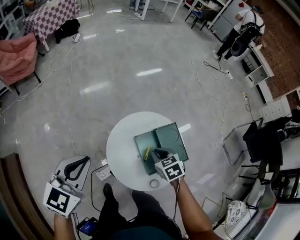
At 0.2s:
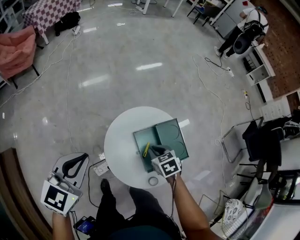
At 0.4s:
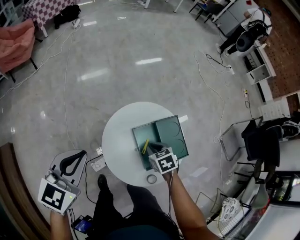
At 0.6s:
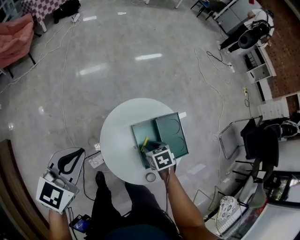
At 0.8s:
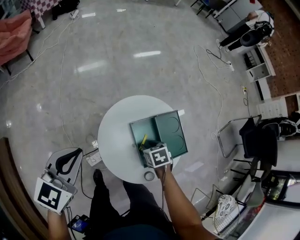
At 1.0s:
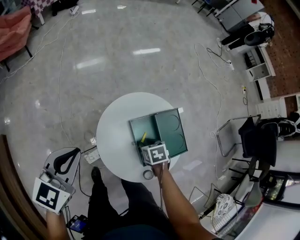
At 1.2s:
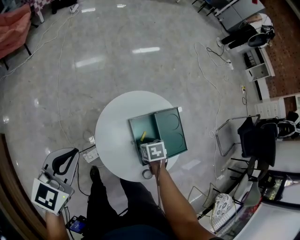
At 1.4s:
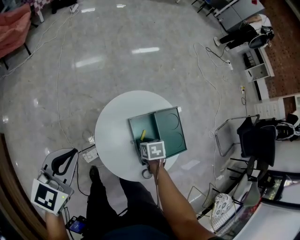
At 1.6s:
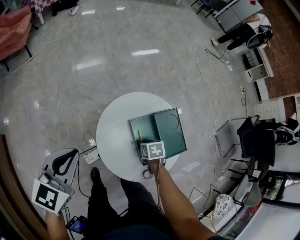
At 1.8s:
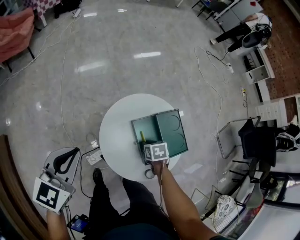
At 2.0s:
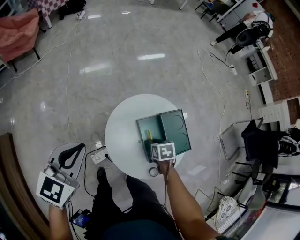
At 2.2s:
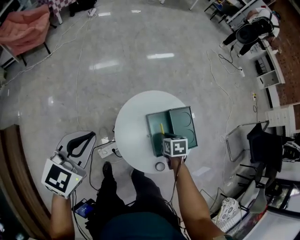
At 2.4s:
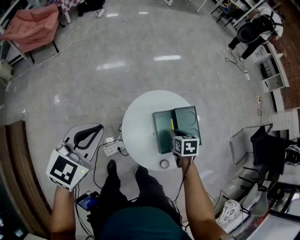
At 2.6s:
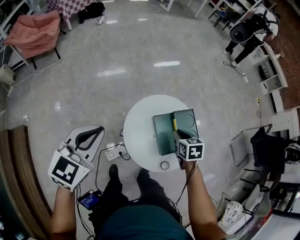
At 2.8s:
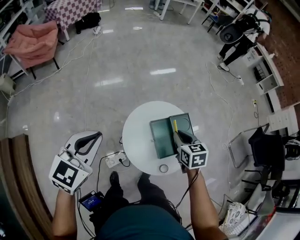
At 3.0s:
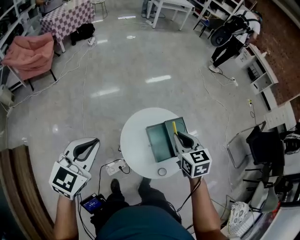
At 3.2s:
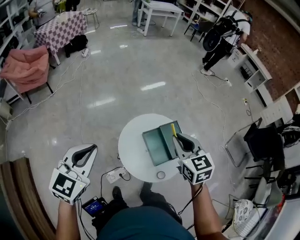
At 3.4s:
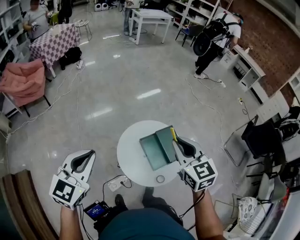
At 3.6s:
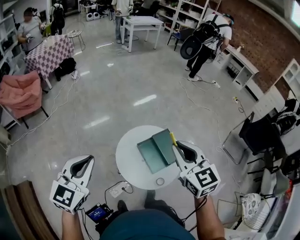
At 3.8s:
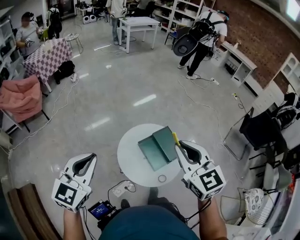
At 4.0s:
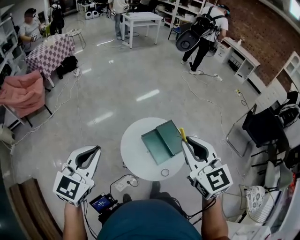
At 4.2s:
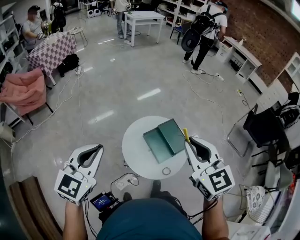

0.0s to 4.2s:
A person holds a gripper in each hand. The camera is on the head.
0.0s to 1.4s: The right gripper moves downward, some 20 cm, turns by some 30 degrees, and opens its fingers; the left gripper goes approximately 15 cm downward.
1.4s to 2.8s: The left gripper travels upward and backward by some 20 cm. The right gripper moves upward, approximately 30 cm, and changes its angle by some 30 degrees.
2.8s to 4.2s: The left gripper is displaced upward and backward by about 15 cm. Meanwhile the right gripper is displaced upward and backward by some 35 cm, and angles its fingers upward, by roughly 30 degrees.

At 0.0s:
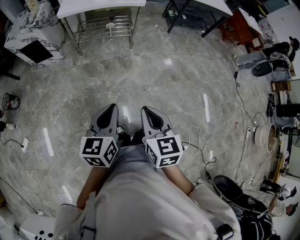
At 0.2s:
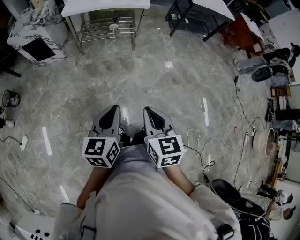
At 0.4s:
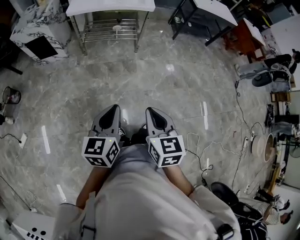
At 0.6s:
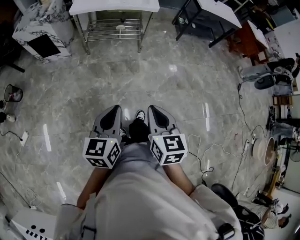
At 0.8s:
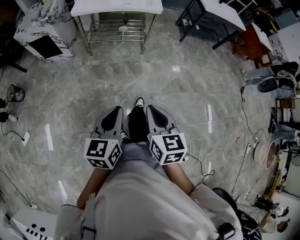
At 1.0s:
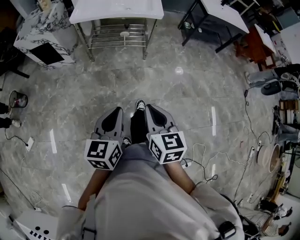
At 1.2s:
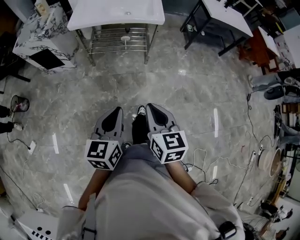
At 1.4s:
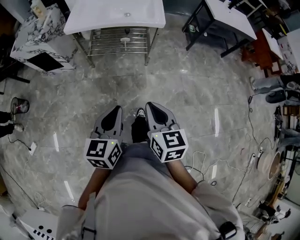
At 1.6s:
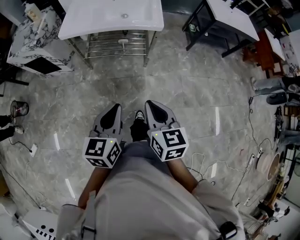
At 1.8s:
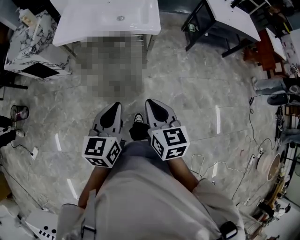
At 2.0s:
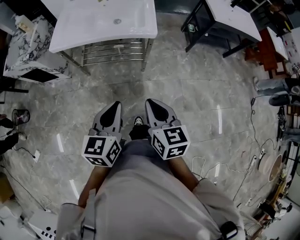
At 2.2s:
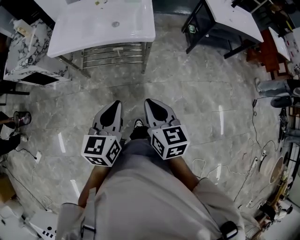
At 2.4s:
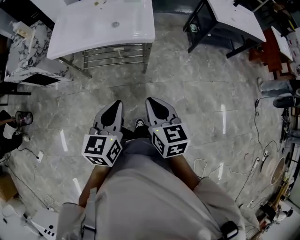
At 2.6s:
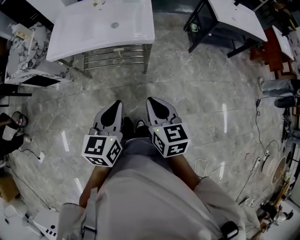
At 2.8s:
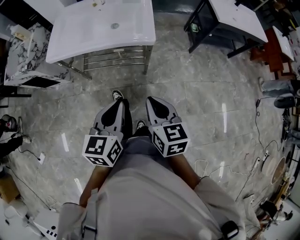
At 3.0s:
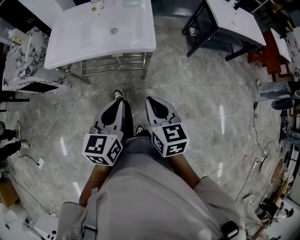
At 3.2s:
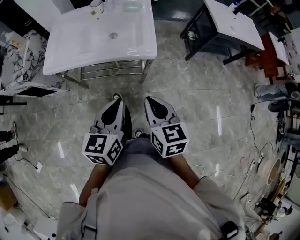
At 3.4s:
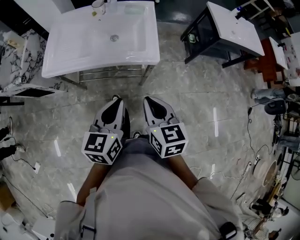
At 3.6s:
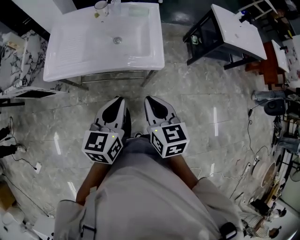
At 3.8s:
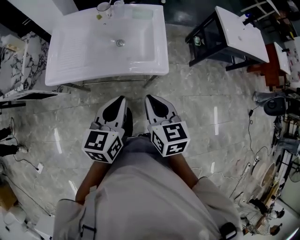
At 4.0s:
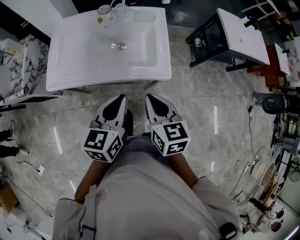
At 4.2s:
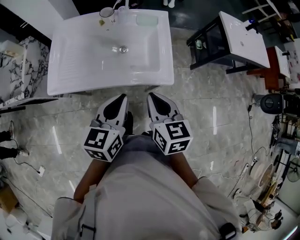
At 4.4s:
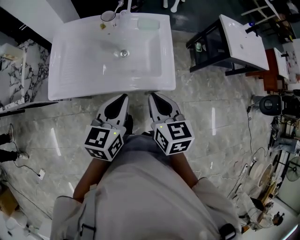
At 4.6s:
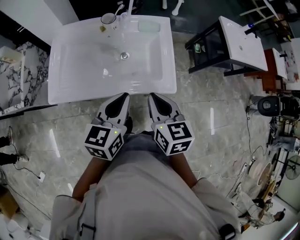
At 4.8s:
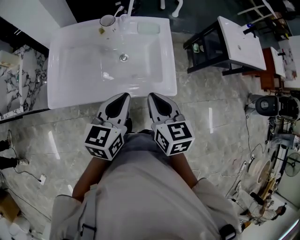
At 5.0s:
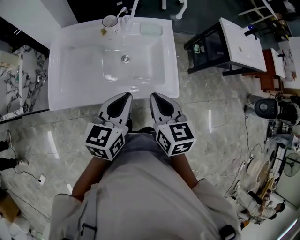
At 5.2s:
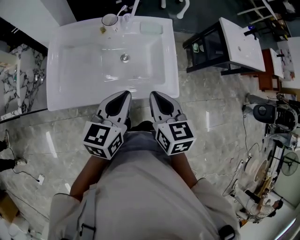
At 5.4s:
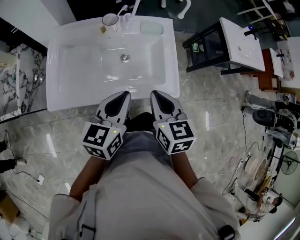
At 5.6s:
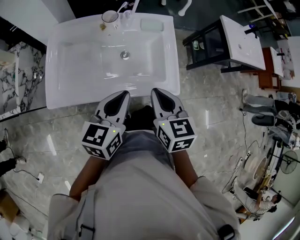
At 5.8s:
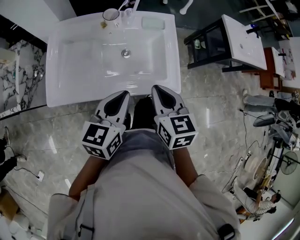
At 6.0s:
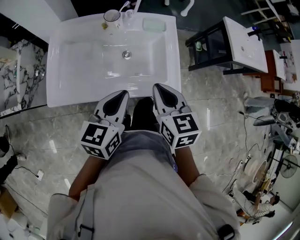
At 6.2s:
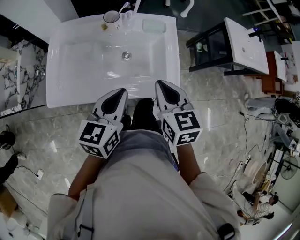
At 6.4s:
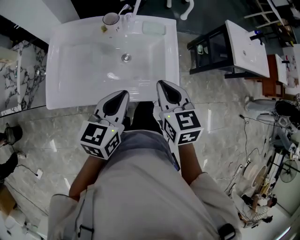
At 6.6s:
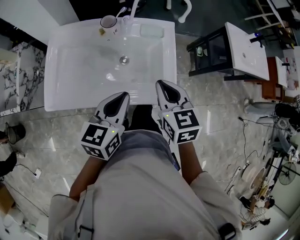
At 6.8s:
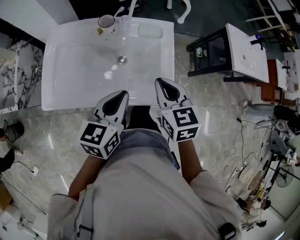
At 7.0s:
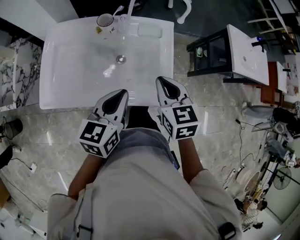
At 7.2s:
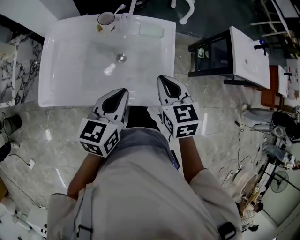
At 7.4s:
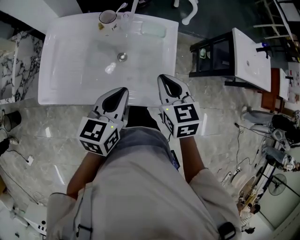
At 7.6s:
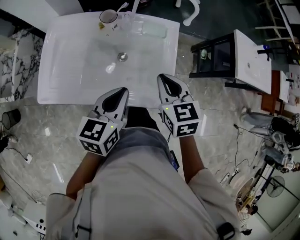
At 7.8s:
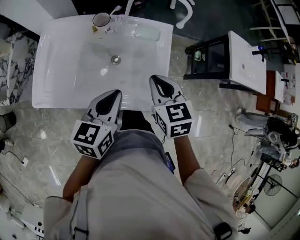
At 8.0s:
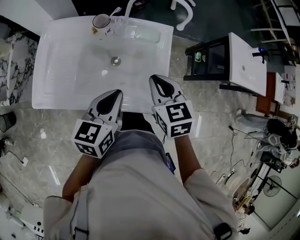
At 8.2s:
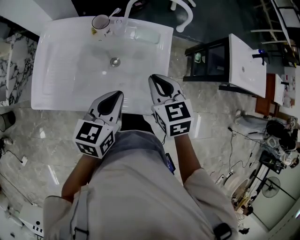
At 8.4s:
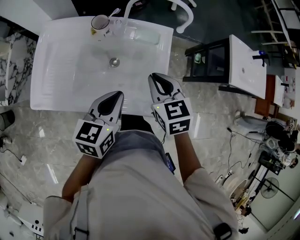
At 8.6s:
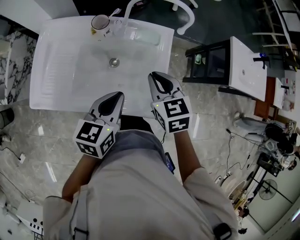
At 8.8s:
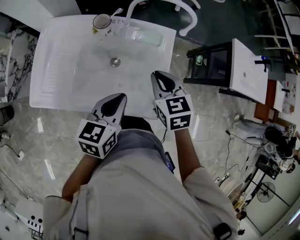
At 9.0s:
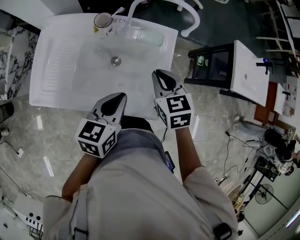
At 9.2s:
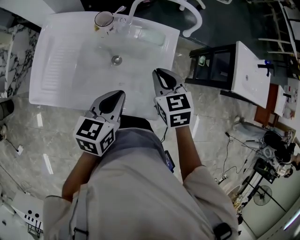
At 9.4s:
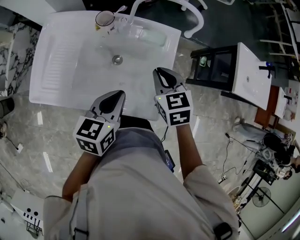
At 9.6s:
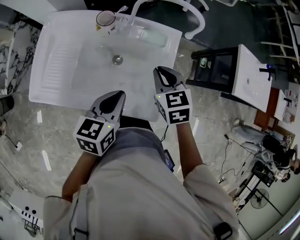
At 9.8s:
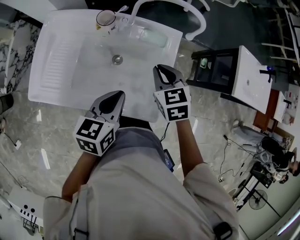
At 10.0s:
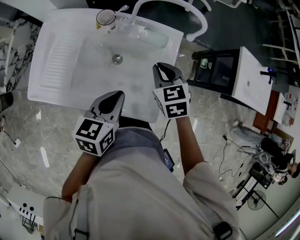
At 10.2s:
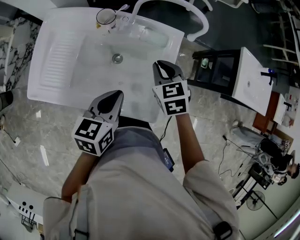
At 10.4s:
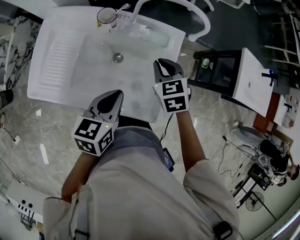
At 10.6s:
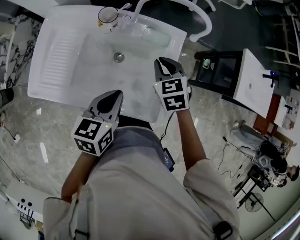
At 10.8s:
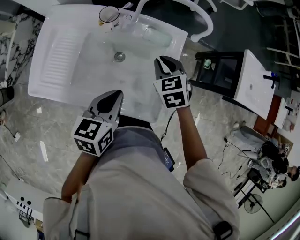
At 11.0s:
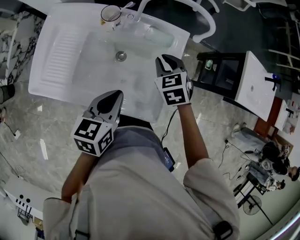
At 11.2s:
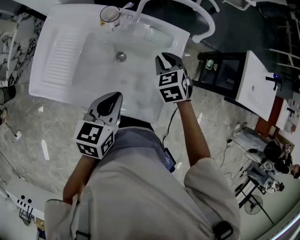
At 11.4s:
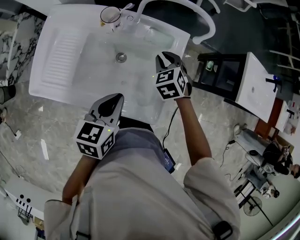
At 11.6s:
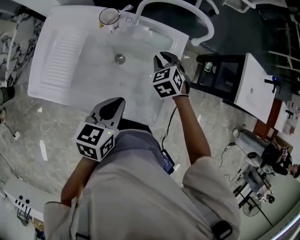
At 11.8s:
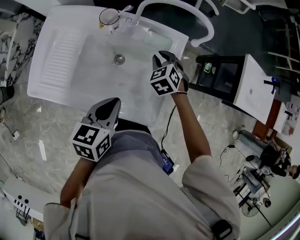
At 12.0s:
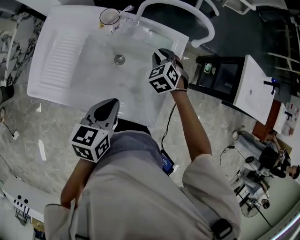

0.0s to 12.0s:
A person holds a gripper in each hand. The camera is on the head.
0.0s to 1.6s: The grippers both shift forward by approximately 30 cm.
1.6s to 3.0s: The grippers both shift forward by roughly 20 cm.
3.0s to 4.4s: The right gripper is displaced forward and to the left by roughly 30 cm; the left gripper shifts some 25 cm forward.
4.4s to 6.0s: Both grippers travel together forward, approximately 5 cm.
6.0s to 7.6s: Both grippers travel together forward and to the right, roughly 10 cm.
7.6s to 9.0s: The right gripper shifts some 5 cm forward.
9.0s to 10.4s: The right gripper goes approximately 10 cm forward and downward.
10.4s to 12.0s: The right gripper shifts about 10 cm downward and forward, and turns by about 20 degrees.

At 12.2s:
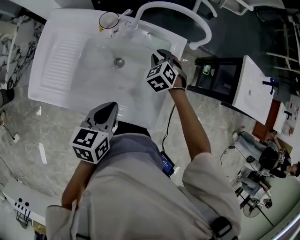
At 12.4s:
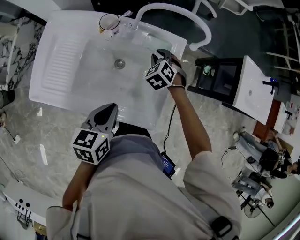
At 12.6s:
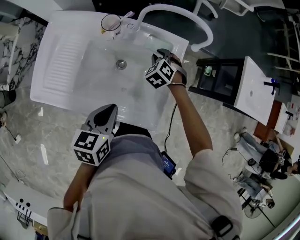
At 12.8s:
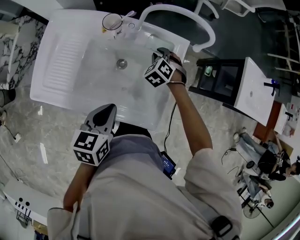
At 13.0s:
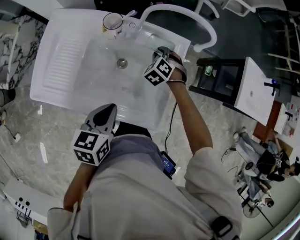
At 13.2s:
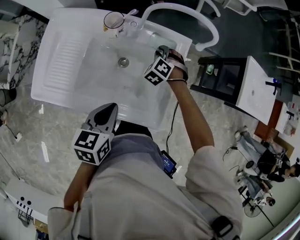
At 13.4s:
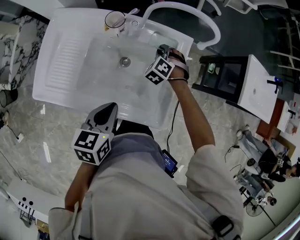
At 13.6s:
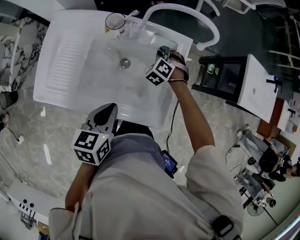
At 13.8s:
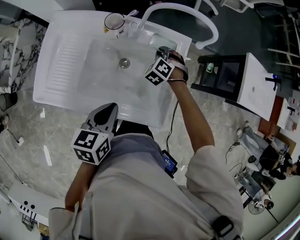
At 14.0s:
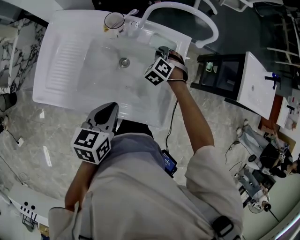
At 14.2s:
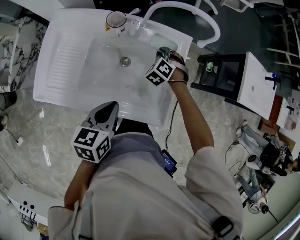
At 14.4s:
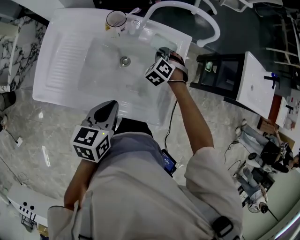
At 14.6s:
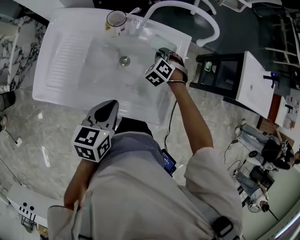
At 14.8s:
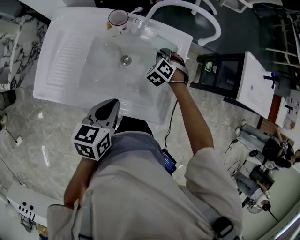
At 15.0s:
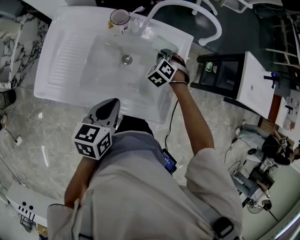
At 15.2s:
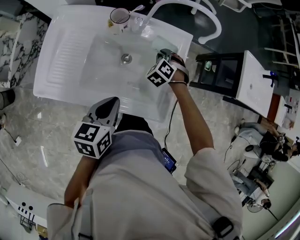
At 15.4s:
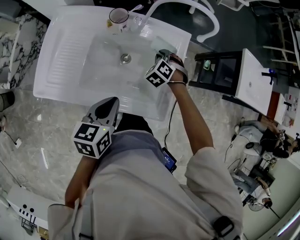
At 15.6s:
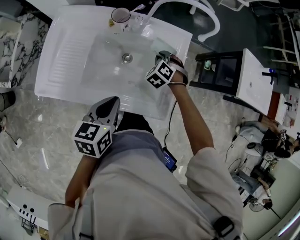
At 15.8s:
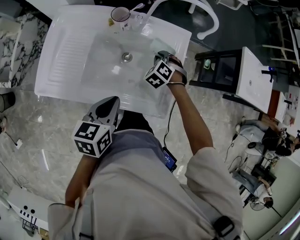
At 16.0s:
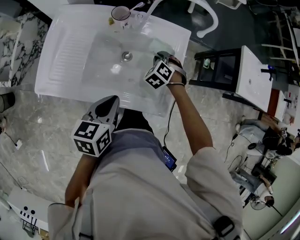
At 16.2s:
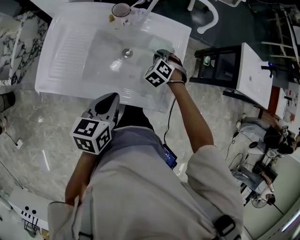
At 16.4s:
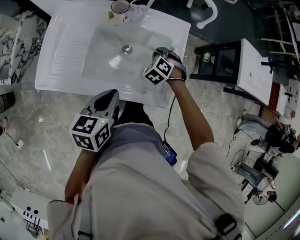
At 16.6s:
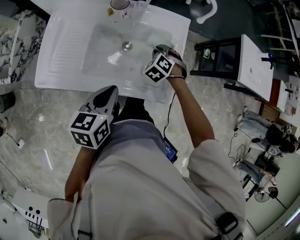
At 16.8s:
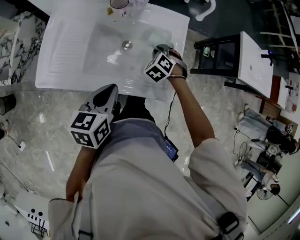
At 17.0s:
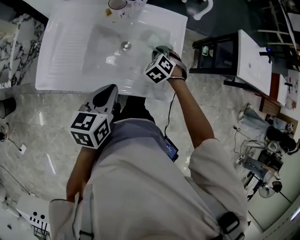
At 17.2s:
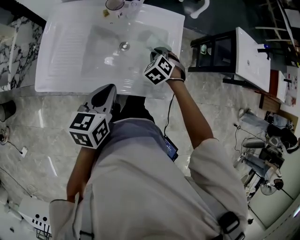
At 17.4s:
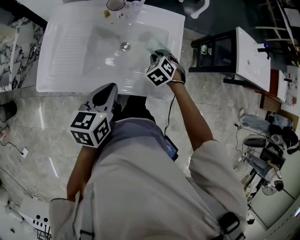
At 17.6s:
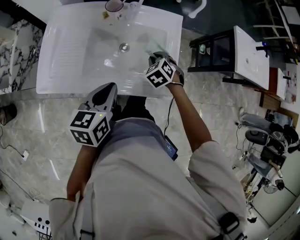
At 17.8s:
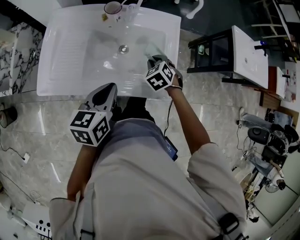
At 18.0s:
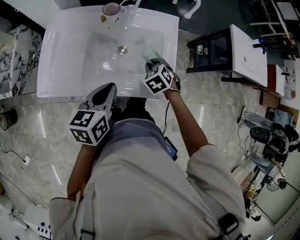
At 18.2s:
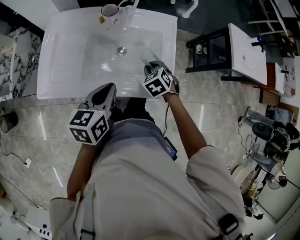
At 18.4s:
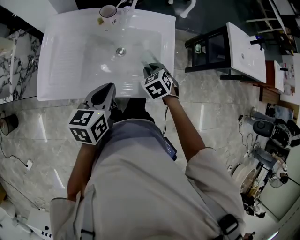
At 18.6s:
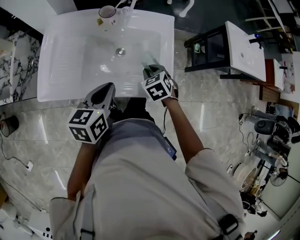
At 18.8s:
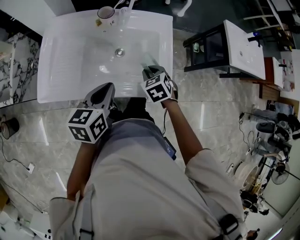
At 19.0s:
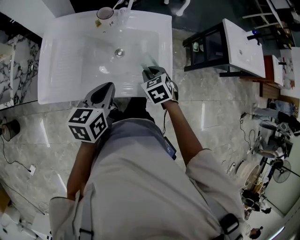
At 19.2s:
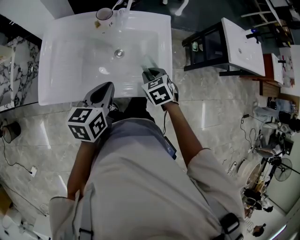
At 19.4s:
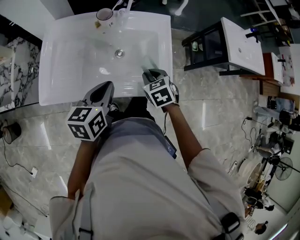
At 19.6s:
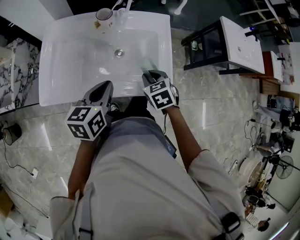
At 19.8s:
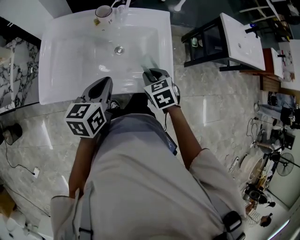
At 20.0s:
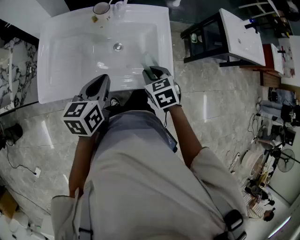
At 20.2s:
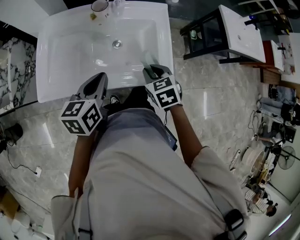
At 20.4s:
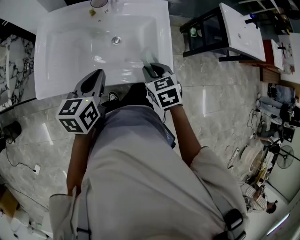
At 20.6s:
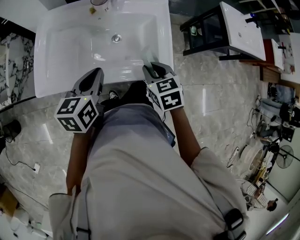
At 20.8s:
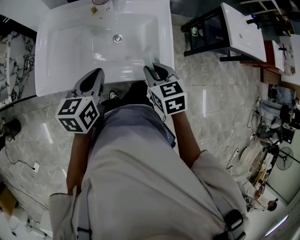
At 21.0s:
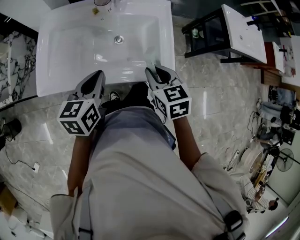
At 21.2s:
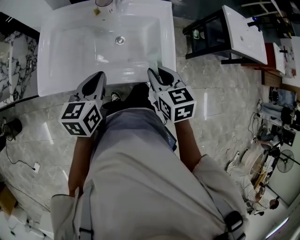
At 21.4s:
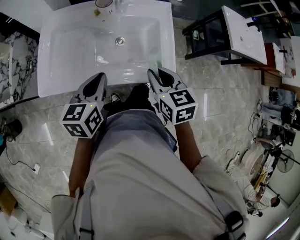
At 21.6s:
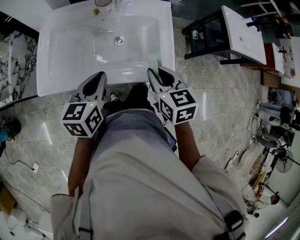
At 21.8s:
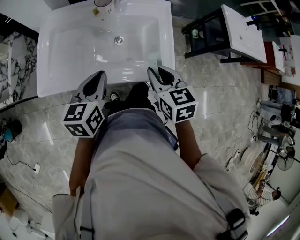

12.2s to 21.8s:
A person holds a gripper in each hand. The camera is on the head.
12.2s to 15.4s: The grippers make only small movements.
15.4s to 17.0s: The right gripper heads backward, covering roughly 10 cm.
17.0s to 18.6s: The right gripper is displaced backward by some 10 cm, and turns by roughly 30 degrees.
18.6s to 20.2s: The right gripper goes roughly 10 cm backward and upward.
20.2s to 21.8s: The right gripper moves upward, approximately 10 cm.
